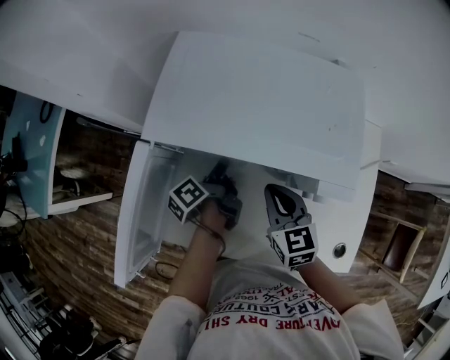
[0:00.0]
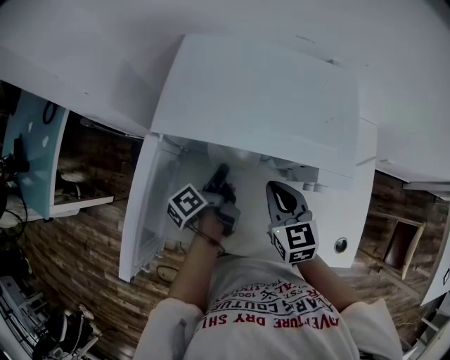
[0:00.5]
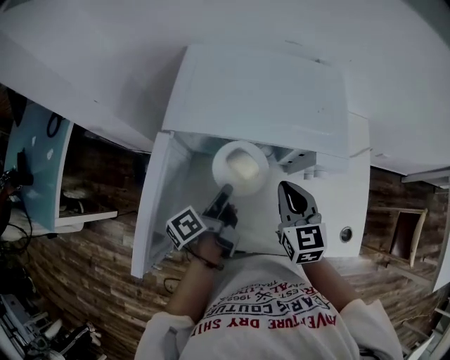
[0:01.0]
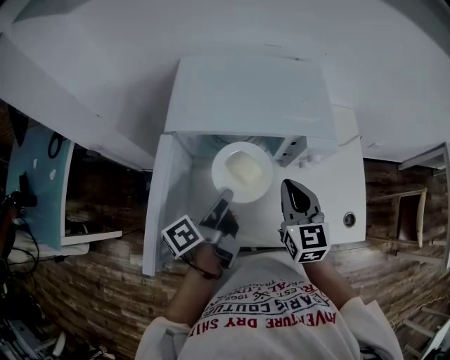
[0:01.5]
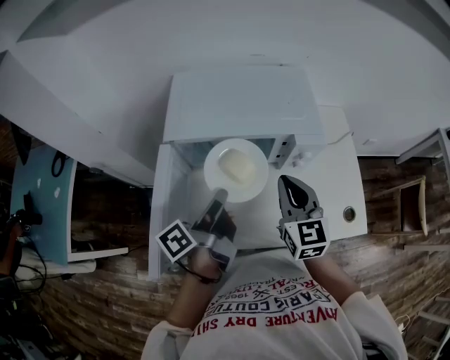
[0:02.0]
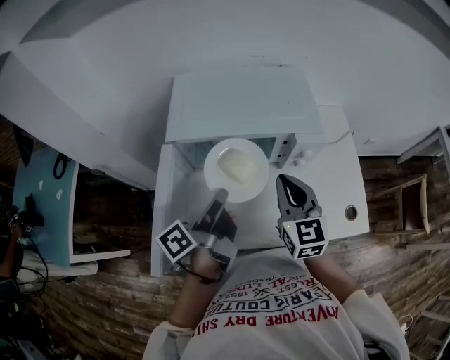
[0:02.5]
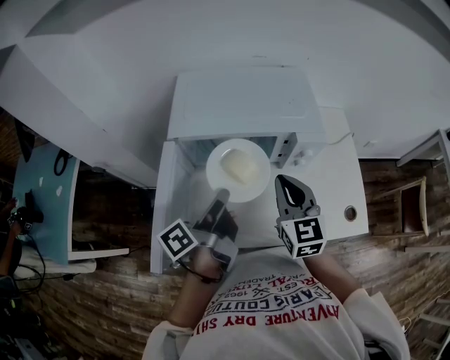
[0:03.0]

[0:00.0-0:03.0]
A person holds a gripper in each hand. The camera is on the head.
0:00.0 to 0:01.5: The right gripper goes roughly 10 cm upward and backward, and turns by some 20 degrees. Meanwhile the left gripper moves upward and backward, approximately 20 cm, and turns by some 30 degrees.
0:01.5 to 0:03.0: The left gripper travels upward by about 5 cm.

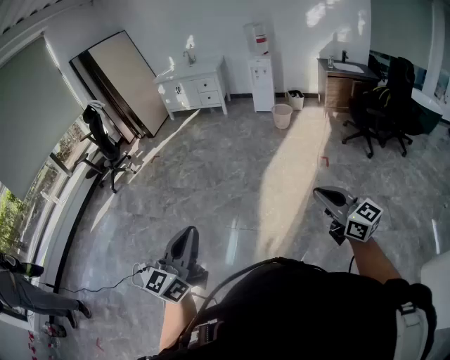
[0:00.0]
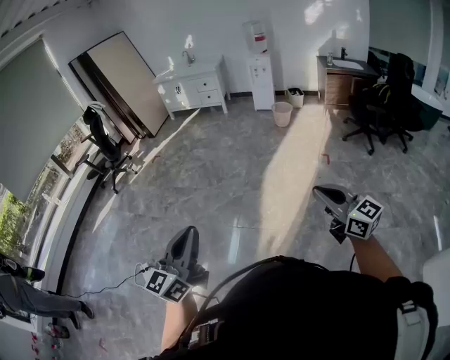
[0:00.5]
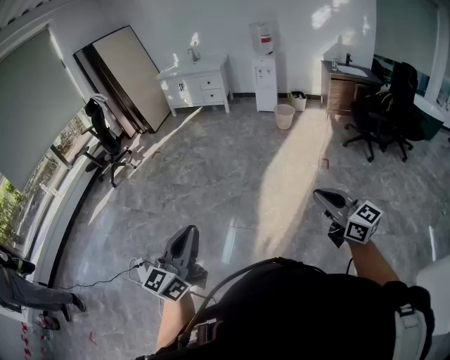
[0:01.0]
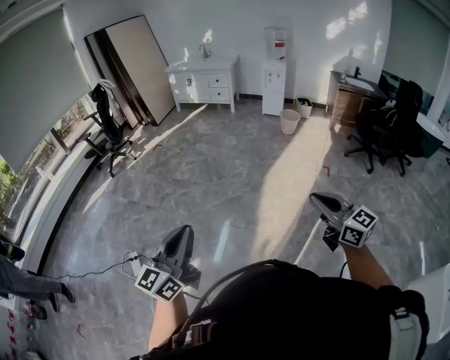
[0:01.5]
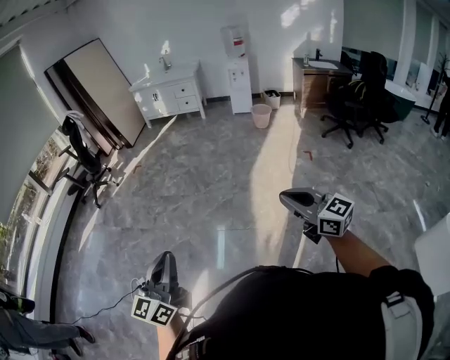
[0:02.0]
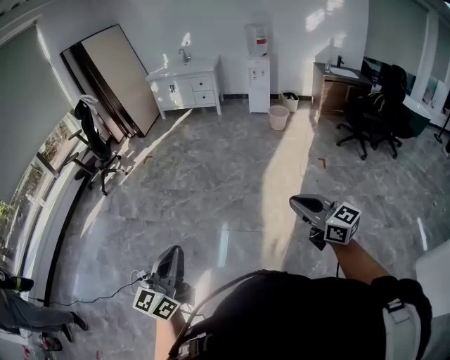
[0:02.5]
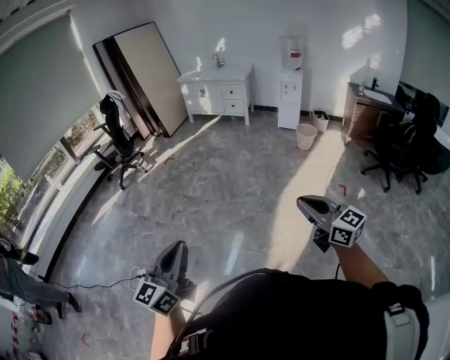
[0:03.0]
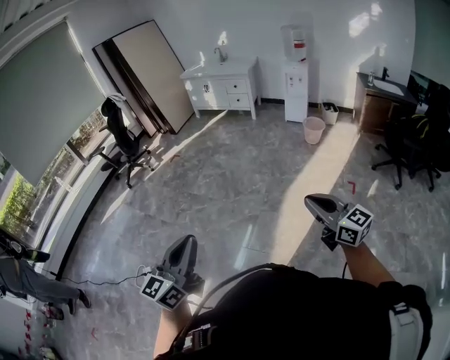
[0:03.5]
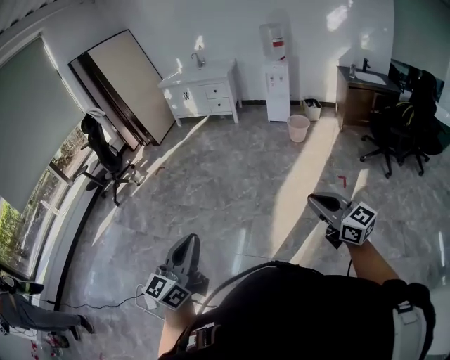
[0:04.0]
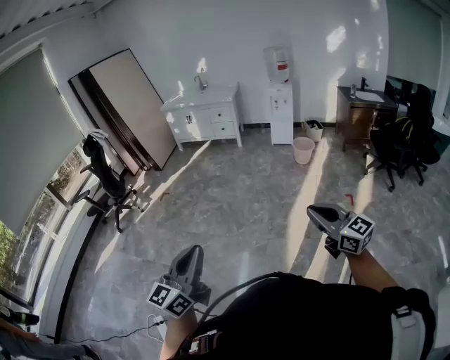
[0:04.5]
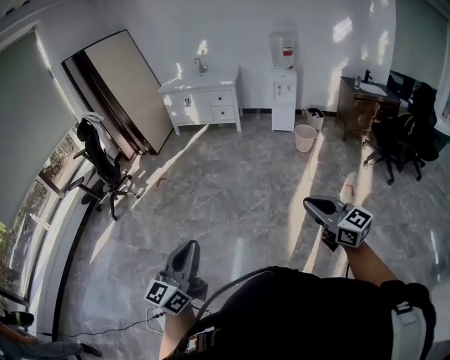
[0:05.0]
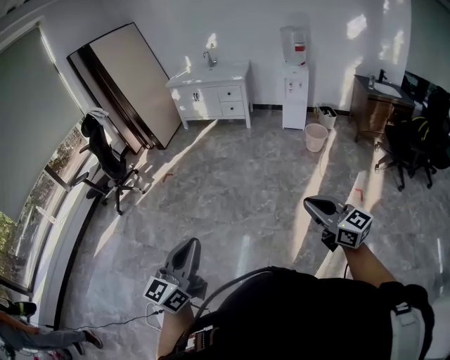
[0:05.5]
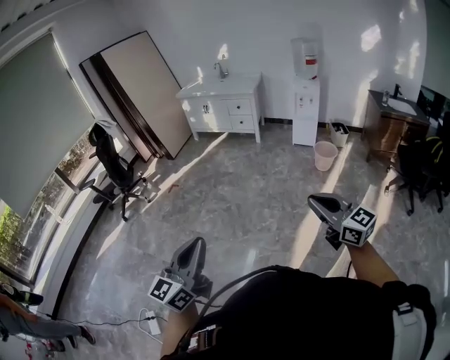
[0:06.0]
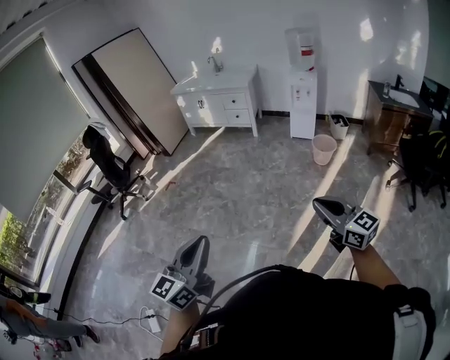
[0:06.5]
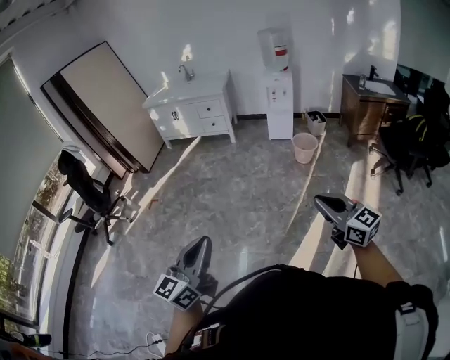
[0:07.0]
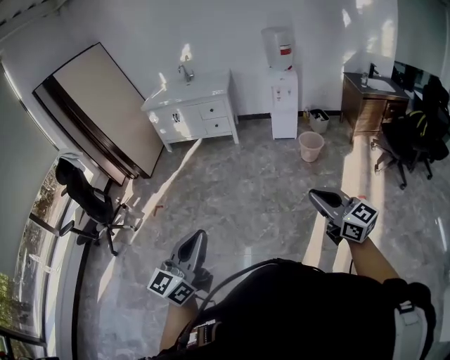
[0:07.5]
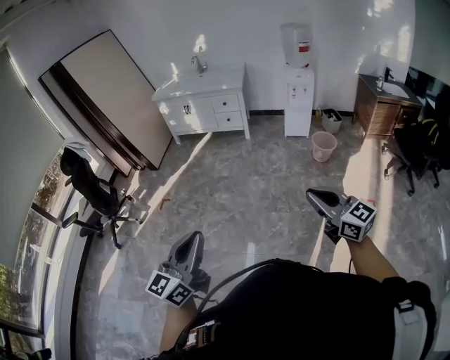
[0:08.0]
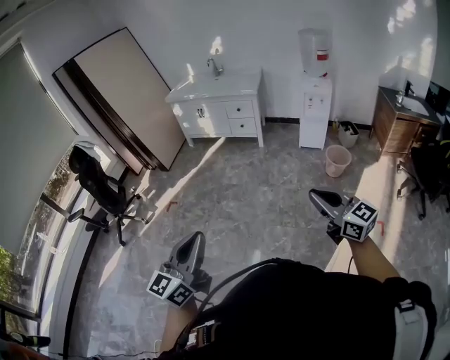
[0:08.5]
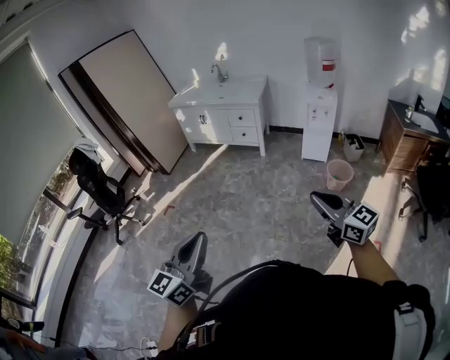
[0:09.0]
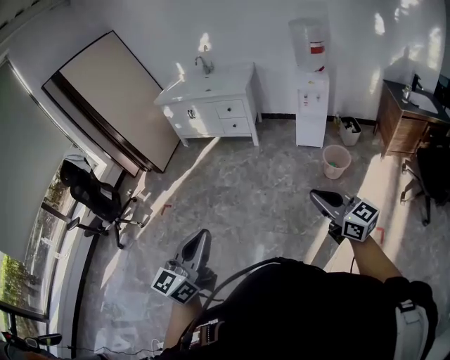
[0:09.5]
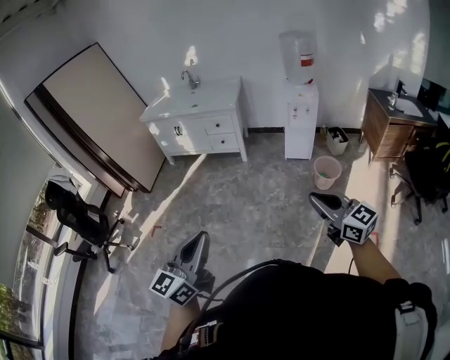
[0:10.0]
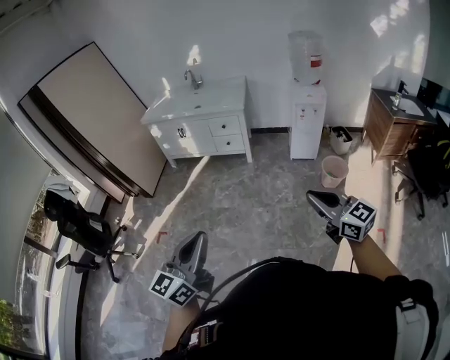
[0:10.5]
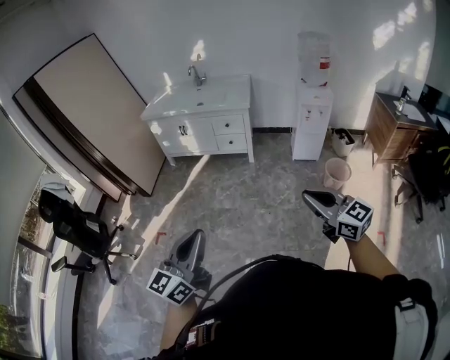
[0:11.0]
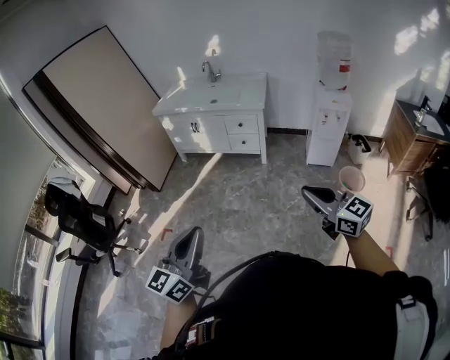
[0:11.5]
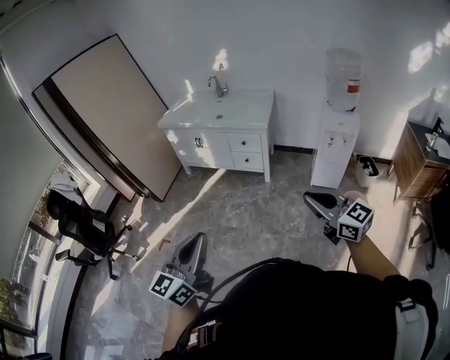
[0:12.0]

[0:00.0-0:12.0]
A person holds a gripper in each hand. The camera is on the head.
0:00.0 to 0:02.0: Both grippers move to the left, some 20 cm.
0:02.0 to 0:04.0: Both grippers travel together forward and to the right, some 35 cm.
0:04.0 to 0:06.0: The grippers both shift forward by approximately 30 cm.
0:06.0 to 0:08.0: Both grippers move forward and to the left, roughly 30 cm.
0:08.0 to 0:10.0: Both grippers move forward and to the right, roughly 35 cm.
0:10.0 to 0:12.0: Both grippers travel together forward, approximately 30 cm.

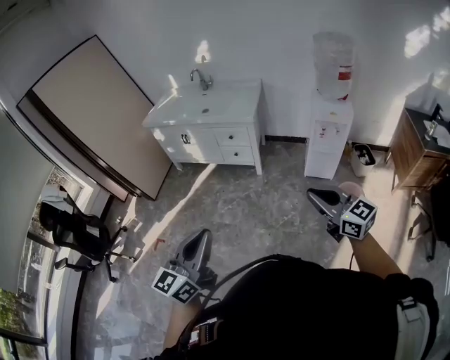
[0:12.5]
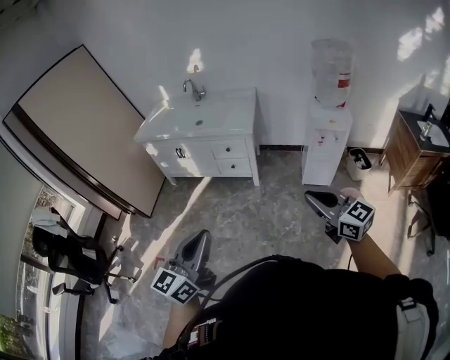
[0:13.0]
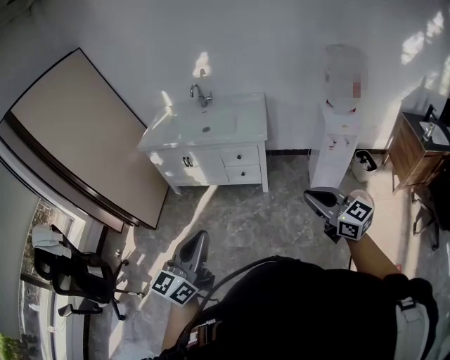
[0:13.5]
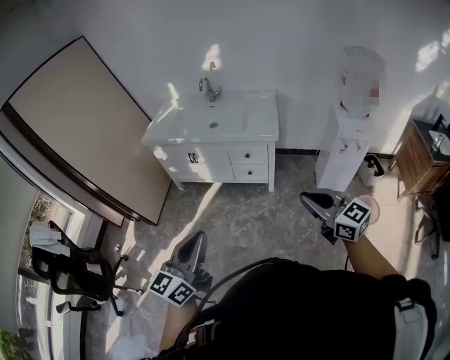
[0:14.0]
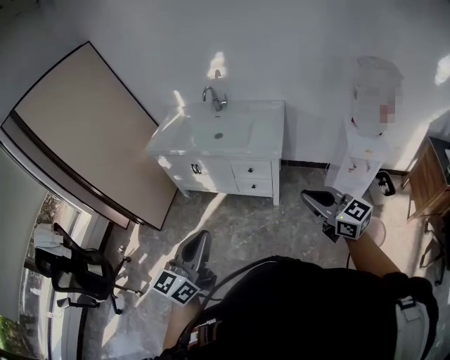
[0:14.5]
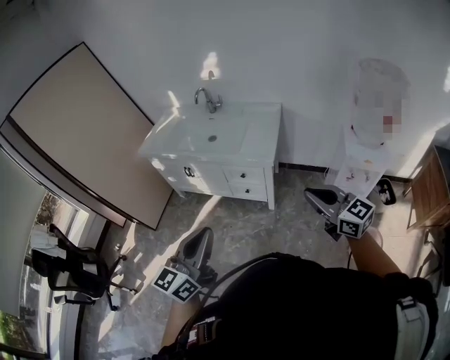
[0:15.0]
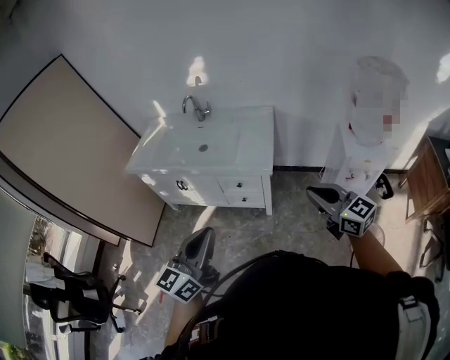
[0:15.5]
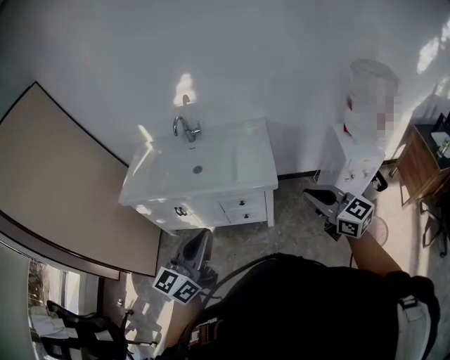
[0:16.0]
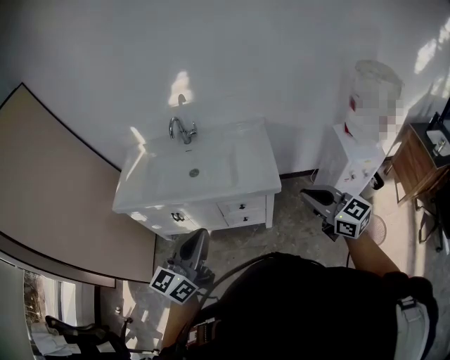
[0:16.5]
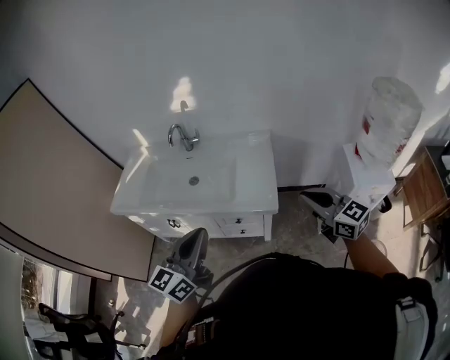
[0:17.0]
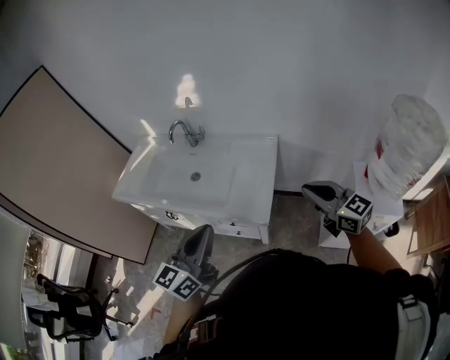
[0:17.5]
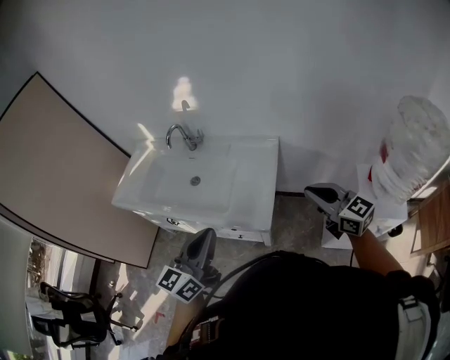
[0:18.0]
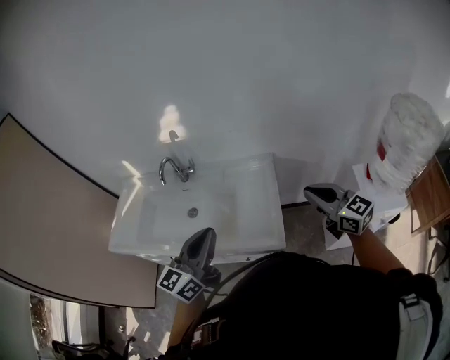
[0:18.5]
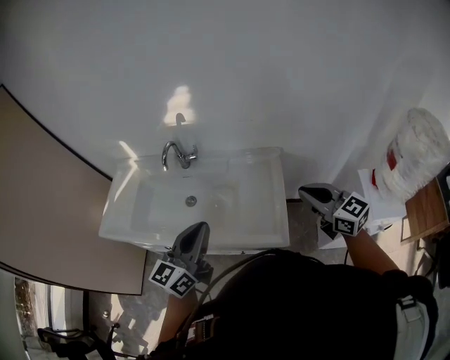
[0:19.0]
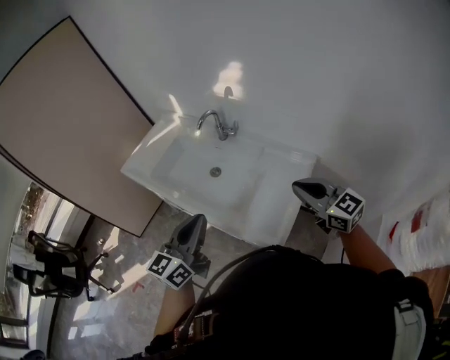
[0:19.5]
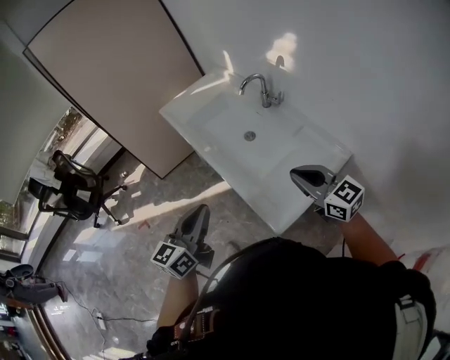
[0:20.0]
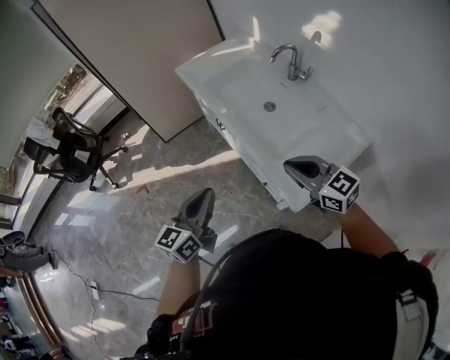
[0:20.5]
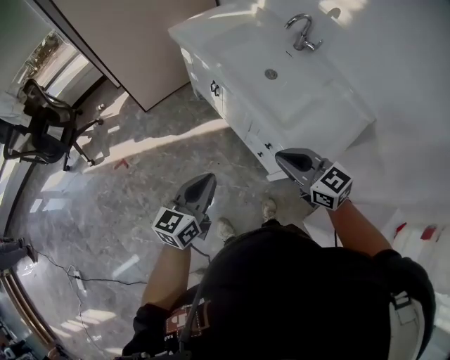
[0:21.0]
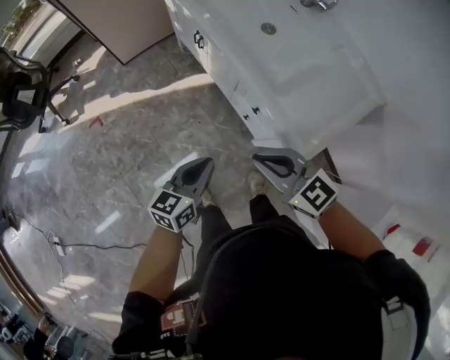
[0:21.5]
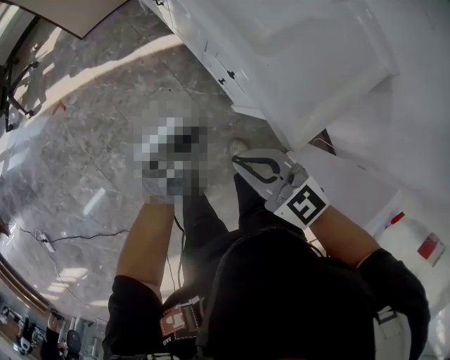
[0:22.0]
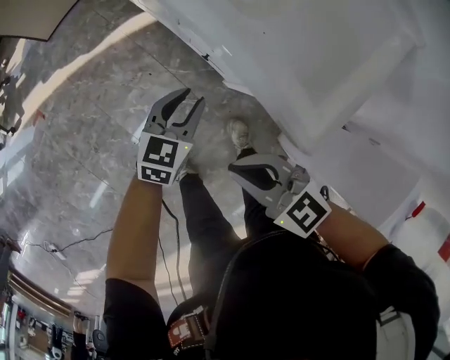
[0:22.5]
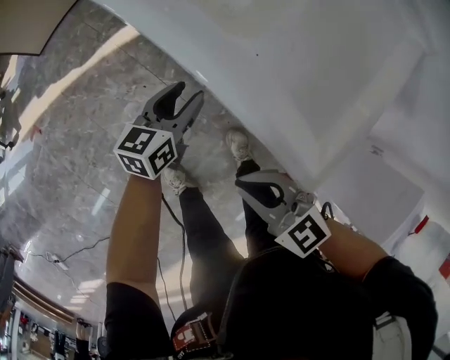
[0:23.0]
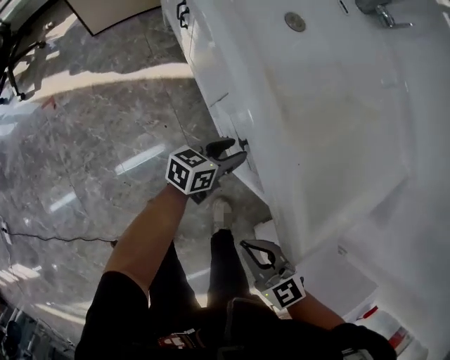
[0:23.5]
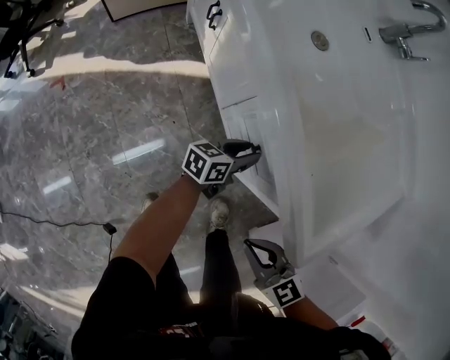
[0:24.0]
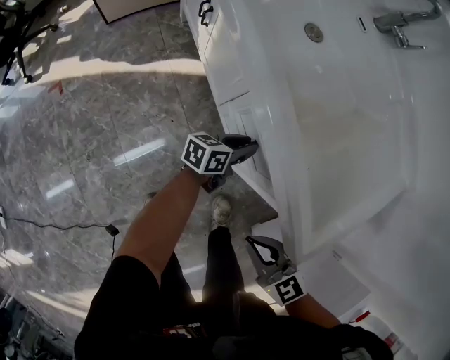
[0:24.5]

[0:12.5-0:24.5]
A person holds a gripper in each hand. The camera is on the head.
0:12.5 to 0:14.5: Both grippers move forward, about 35 cm.
0:14.5 to 0:16.5: Both grippers travel together forward, about 35 cm.
0:16.5 to 0:18.5: Both grippers travel together forward and to the right, approximately 35 cm.
0:18.5 to 0:20.5: The right gripper moves some 25 cm, and rotates roughly 60 degrees. The left gripper shifts by about 20 cm, and changes its angle by some 60 degrees.
0:20.5 to 0:22.5: Both grippers move downward, about 50 cm. The left gripper changes its angle by some 40 degrees, and opens its fingers.
0:22.5 to 0:24.5: The left gripper is displaced forward, downward and to the right by about 15 cm, and turns by approximately 40 degrees, while the right gripper shifts by approximately 5 cm.
